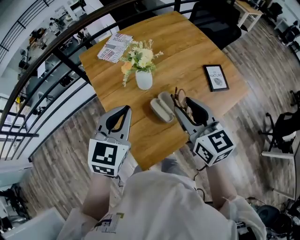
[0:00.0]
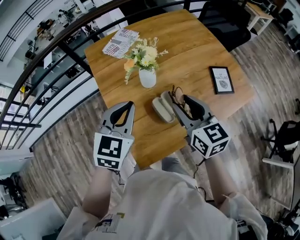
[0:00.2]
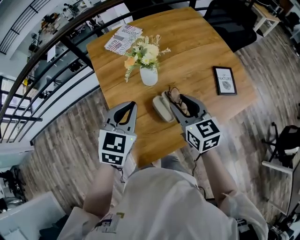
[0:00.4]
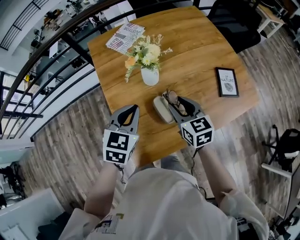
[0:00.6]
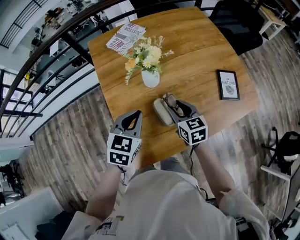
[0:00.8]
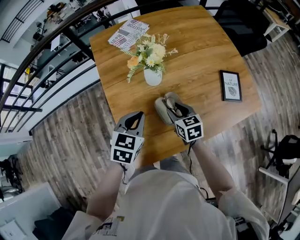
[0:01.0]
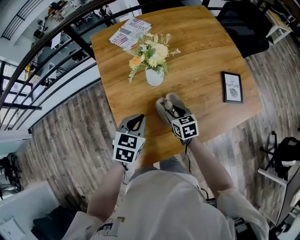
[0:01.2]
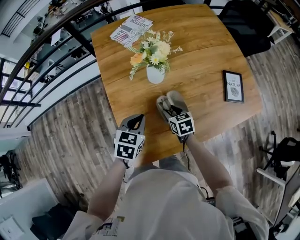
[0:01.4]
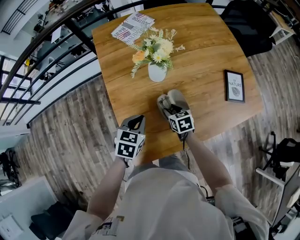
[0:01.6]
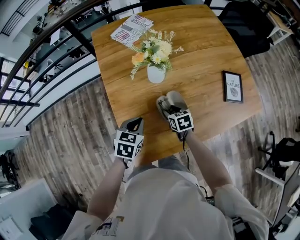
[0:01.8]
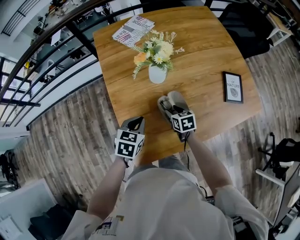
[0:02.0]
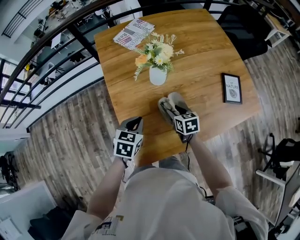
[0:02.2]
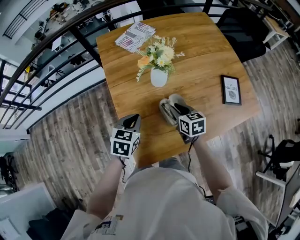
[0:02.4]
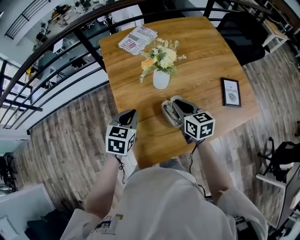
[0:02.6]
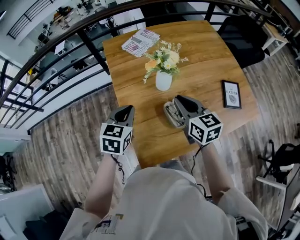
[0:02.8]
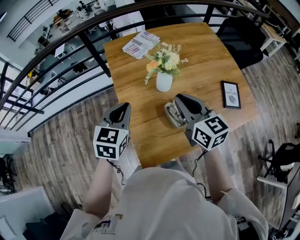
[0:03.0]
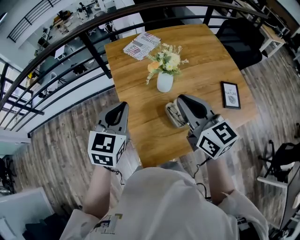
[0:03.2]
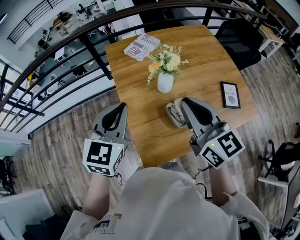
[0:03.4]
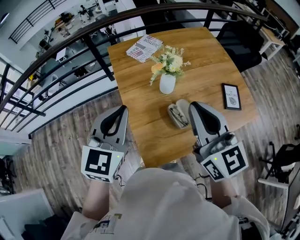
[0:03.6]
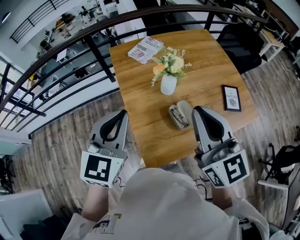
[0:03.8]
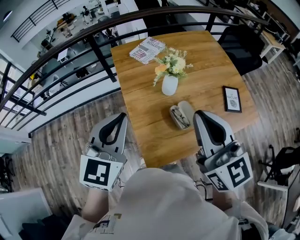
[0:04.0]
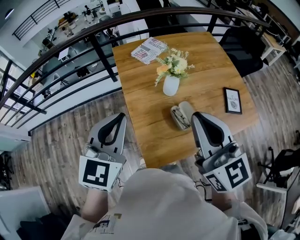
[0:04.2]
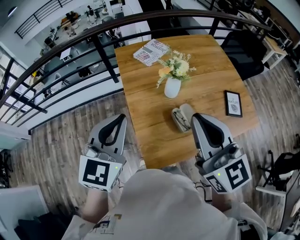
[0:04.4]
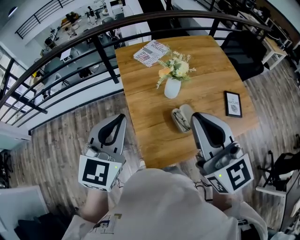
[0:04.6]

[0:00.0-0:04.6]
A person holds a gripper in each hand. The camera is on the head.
0.0 to 1.6 s: Both grippers move downward, roughly 30 cm. The right gripper tips its fingers downward by approximately 40 degrees. Meanwhile the left gripper swivels some 30 degrees.
1.6 to 3.0 s: The left gripper goes roughly 20 cm upward and to the left, and swivels about 20 degrees. Meanwhile the right gripper heads upward, covering roughly 35 cm, angles its fingers upward, by roughly 40 degrees, and closes its fingers.
3.0 to 4.6 s: Both grippers travel together upward and backward, some 20 cm. The right gripper swivels some 20 degrees.

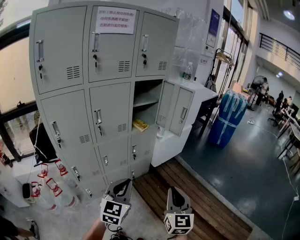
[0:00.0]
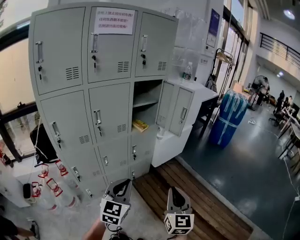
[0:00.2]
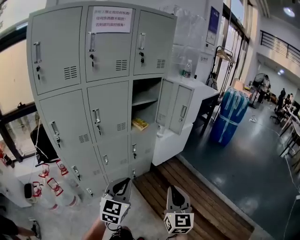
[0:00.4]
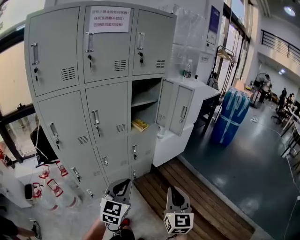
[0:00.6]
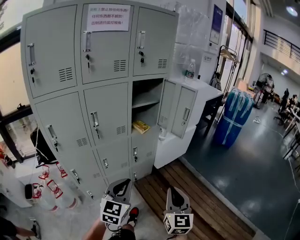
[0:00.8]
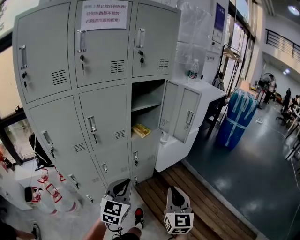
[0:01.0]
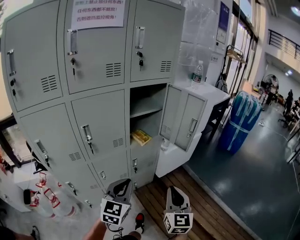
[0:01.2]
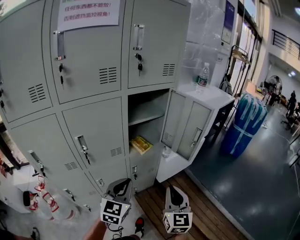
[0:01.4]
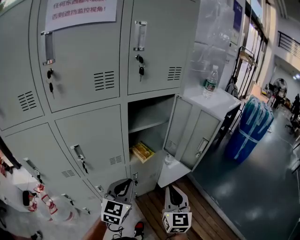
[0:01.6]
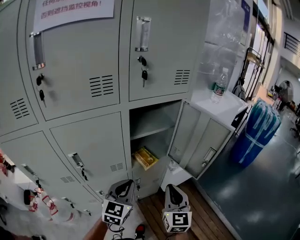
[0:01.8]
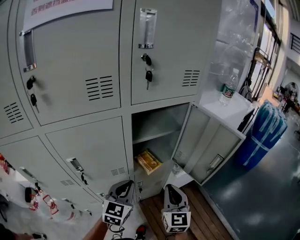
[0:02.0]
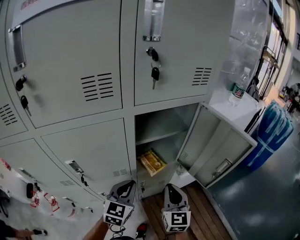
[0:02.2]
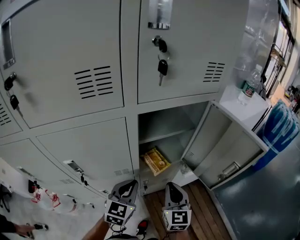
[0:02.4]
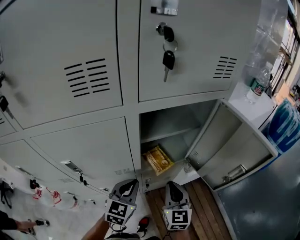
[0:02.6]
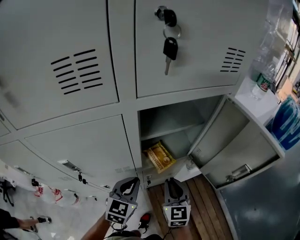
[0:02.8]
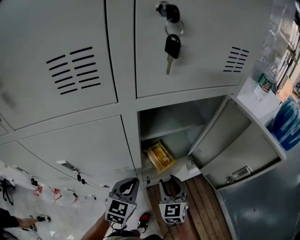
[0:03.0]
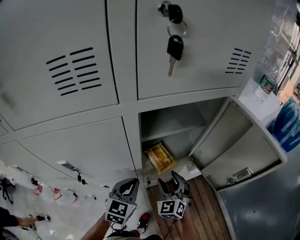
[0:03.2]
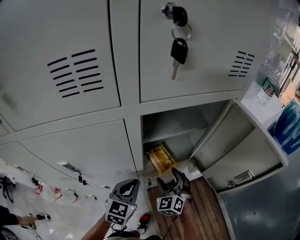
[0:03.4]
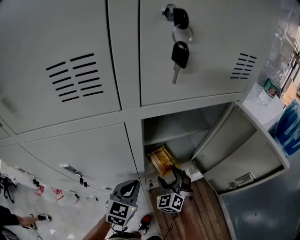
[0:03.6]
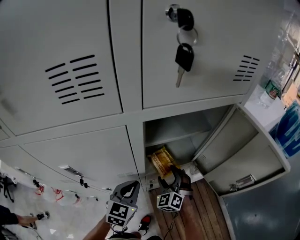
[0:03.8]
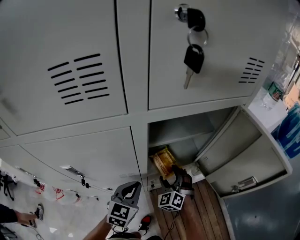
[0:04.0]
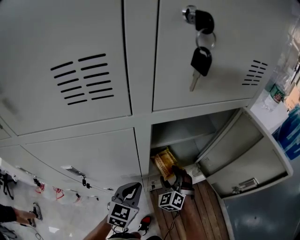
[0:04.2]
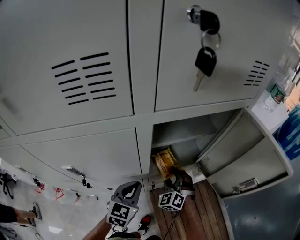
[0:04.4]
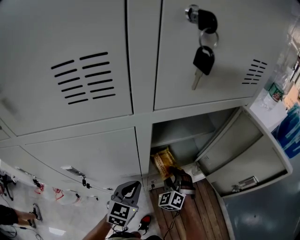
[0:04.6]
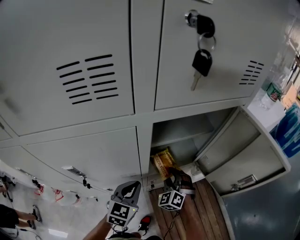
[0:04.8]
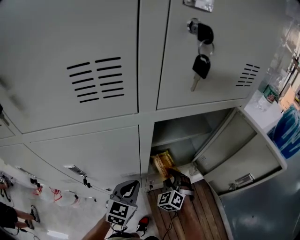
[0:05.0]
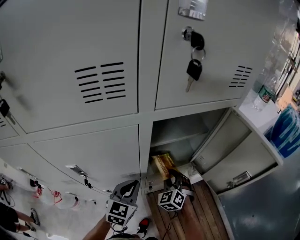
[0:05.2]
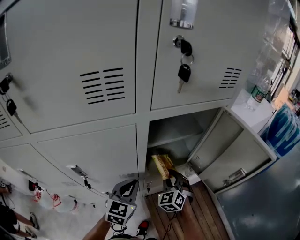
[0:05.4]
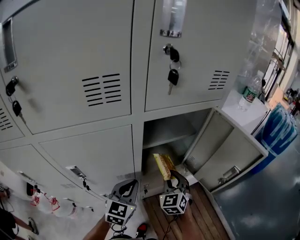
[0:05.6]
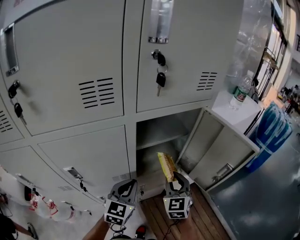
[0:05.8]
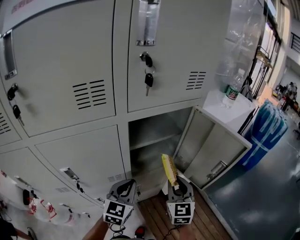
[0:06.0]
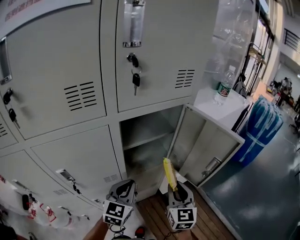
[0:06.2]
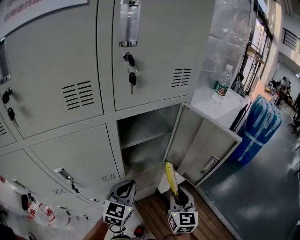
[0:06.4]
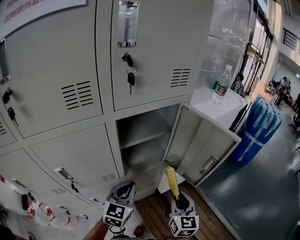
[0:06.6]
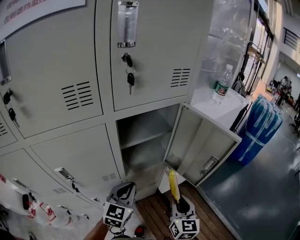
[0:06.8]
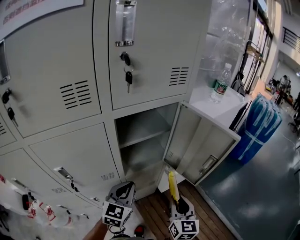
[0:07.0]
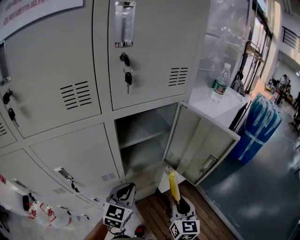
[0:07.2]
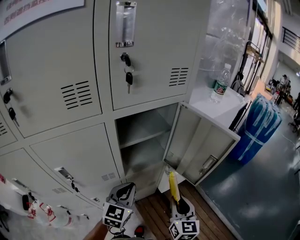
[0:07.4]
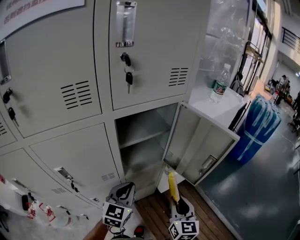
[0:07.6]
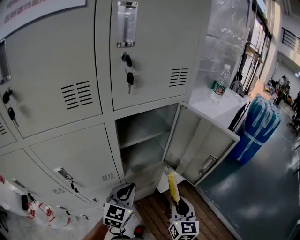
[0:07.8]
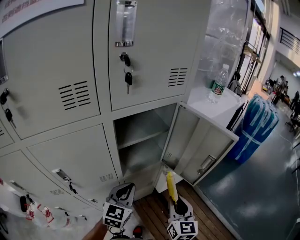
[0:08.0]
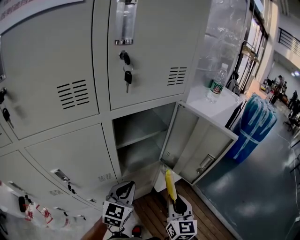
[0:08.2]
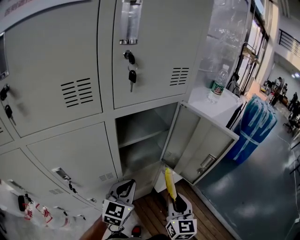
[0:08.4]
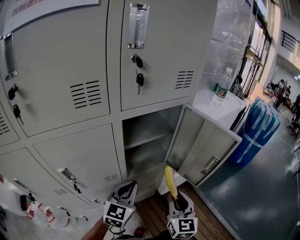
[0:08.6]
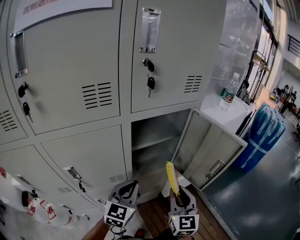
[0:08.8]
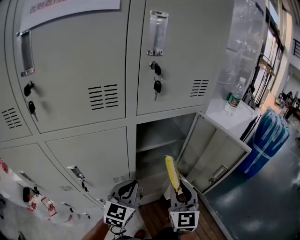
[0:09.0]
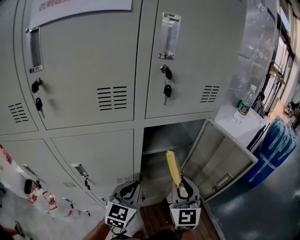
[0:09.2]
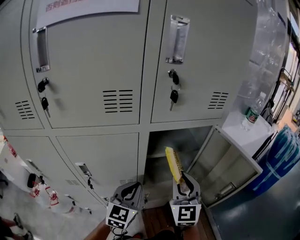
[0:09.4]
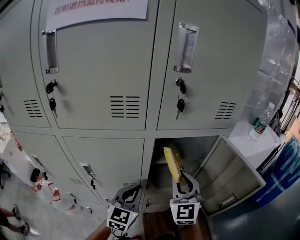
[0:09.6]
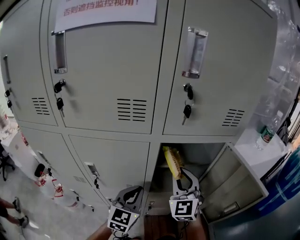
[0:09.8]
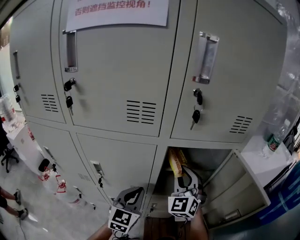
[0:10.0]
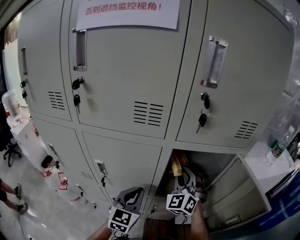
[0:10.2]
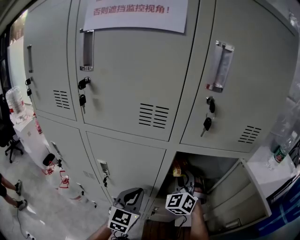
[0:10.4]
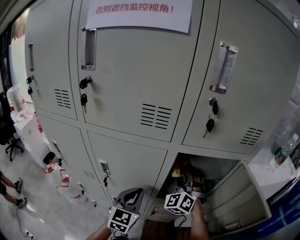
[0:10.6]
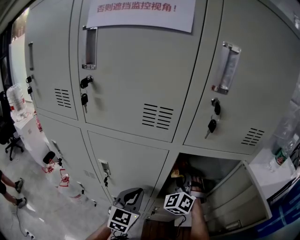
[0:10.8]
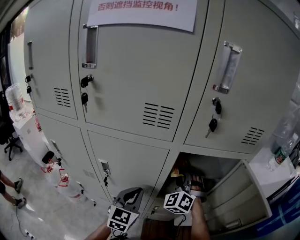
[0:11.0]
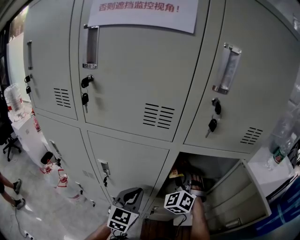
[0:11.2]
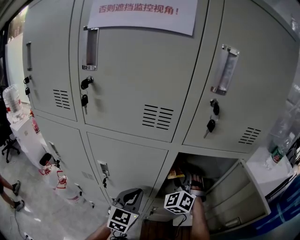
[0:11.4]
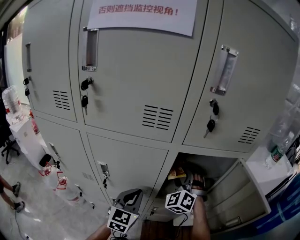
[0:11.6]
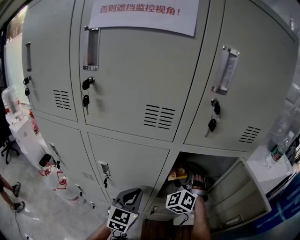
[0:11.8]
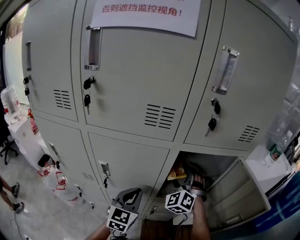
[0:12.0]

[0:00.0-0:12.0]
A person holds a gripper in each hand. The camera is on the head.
0.0 to 1.6 s: The two grippers go about 35 cm forward.
1.6 to 3.0 s: The left gripper moves forward and downward, roughly 15 cm, while the right gripper travels forward, downward and to the left by some 25 cm, changes its angle by roughly 30 degrees, and opens its fingers.
3.0 to 4.4 s: The right gripper shifts about 10 cm forward and downward, and turns by roughly 30 degrees.
4.4 to 6.0 s: The left gripper heads upward, covering roughly 10 cm; the right gripper travels upward, to the right and backward by some 20 cm, twists some 40 degrees clockwise, seen from behind, and closes up.
6.0 to 7.6 s: The right gripper goes roughly 10 cm backward and to the right.
7.6 to 9.0 s: The left gripper changes place by some 5 cm, while the right gripper is displaced upward, to the left and forward by about 15 cm, and swivels roughly 20 degrees.
9.0 to 10.4 s: The right gripper is displaced forward and to the left by approximately 20 cm, and rotates around the line of its fingers by approximately 40 degrees, counterclockwise from behind, while the left gripper moves to the left, approximately 5 cm, and swivels approximately 30 degrees.
10.4 to 12.0 s: The right gripper opens up.

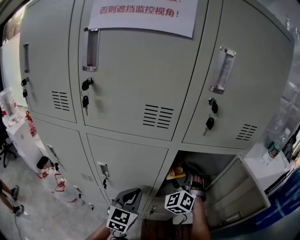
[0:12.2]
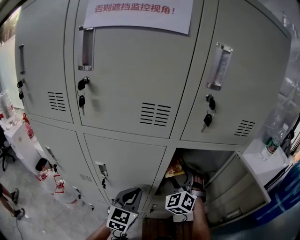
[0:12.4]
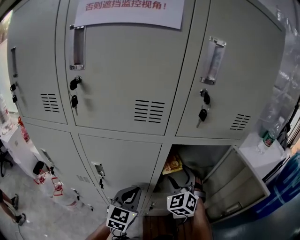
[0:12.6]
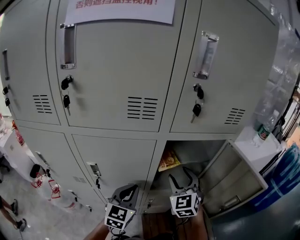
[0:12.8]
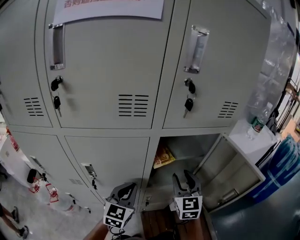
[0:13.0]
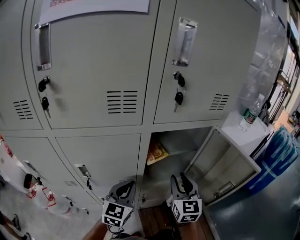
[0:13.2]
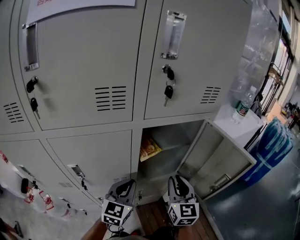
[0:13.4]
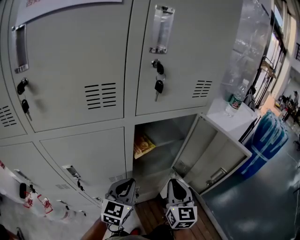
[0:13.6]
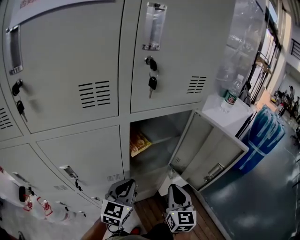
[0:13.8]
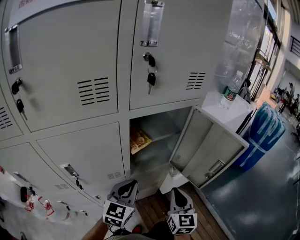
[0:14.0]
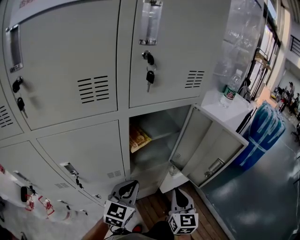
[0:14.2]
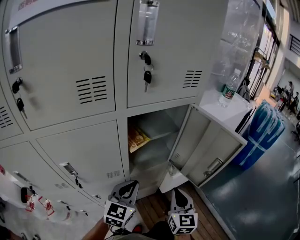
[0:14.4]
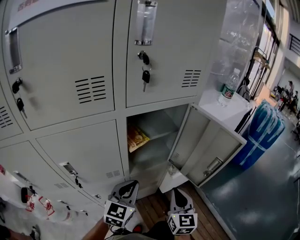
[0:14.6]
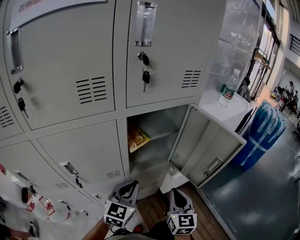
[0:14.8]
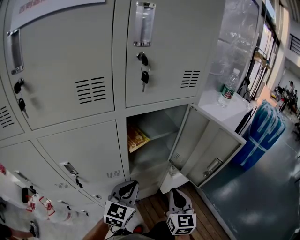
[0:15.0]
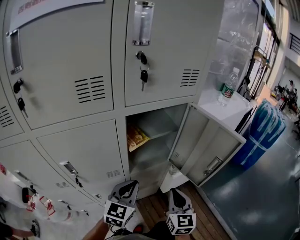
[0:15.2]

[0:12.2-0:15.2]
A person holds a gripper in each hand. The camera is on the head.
12.2 to 13.8 s: The right gripper is displaced backward and to the right by some 20 cm, twists some 70 degrees clockwise, seen from behind, and closes its fingers. Meanwhile the left gripper heads to the right, covering about 10 cm, and changes its angle by roughly 30 degrees.
13.8 to 15.2 s: There are only small adjustments of the grippers.

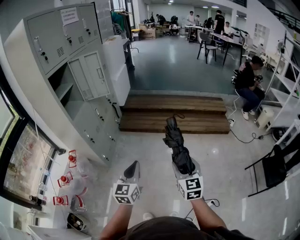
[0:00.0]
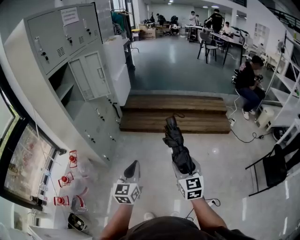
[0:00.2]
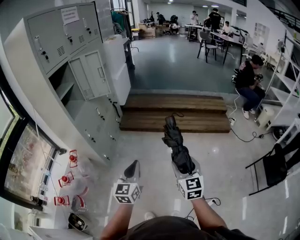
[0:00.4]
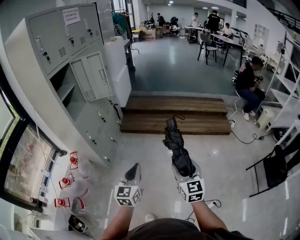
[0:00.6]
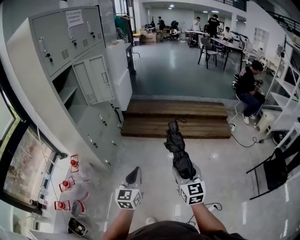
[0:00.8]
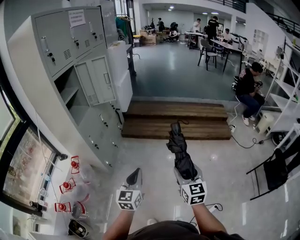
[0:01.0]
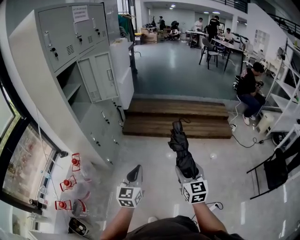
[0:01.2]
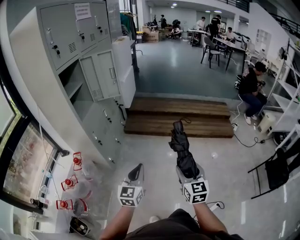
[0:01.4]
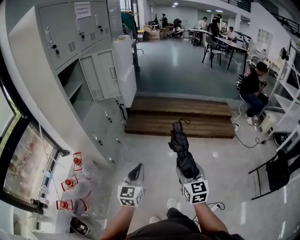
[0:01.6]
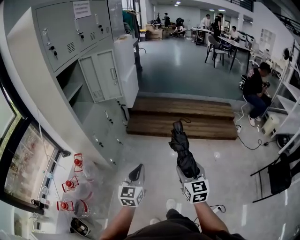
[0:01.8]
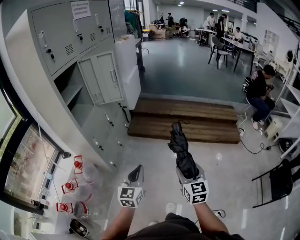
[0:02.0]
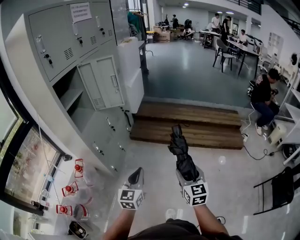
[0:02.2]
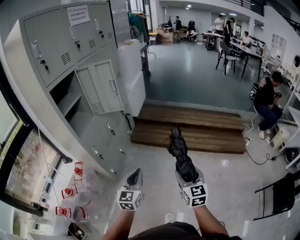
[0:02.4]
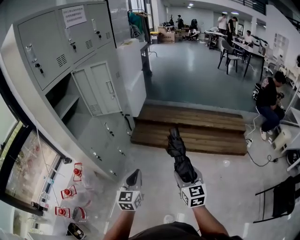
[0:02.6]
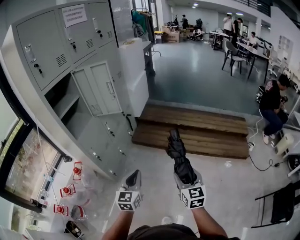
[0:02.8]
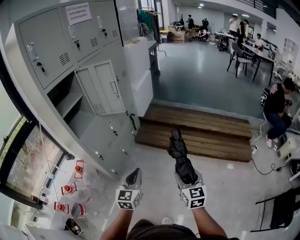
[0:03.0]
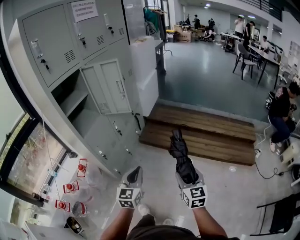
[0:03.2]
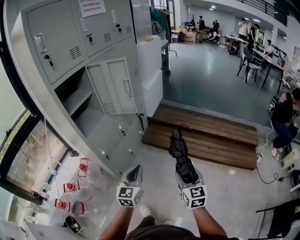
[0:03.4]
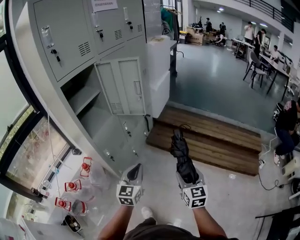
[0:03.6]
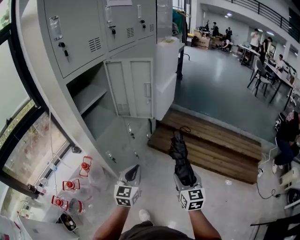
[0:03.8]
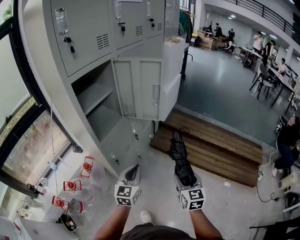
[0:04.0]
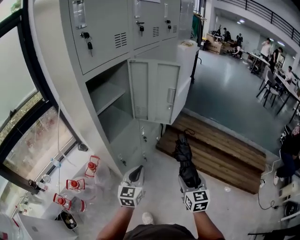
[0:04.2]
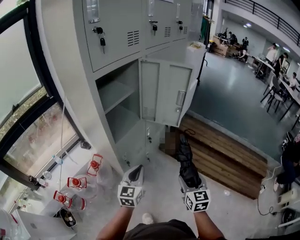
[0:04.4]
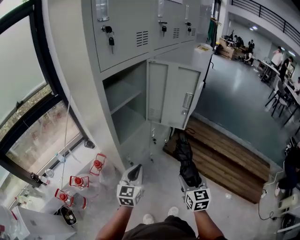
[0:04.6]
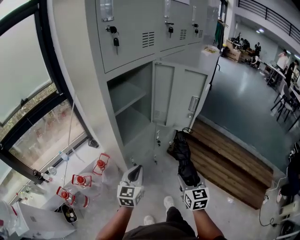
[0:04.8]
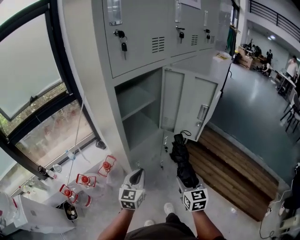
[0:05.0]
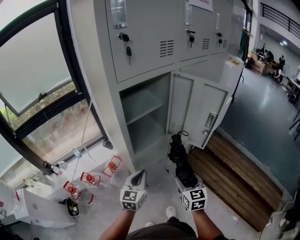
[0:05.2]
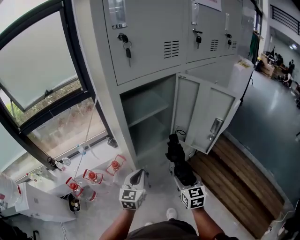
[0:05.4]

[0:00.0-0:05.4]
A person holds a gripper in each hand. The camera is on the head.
0.0 to 1.4 s: Both grippers travel together to the left, roughly 10 cm.
1.4 to 2.8 s: Both grippers move forward, approximately 20 cm.
2.8 to 4.0 s: Both grippers travel together to the left and forward, roughly 25 cm.
4.0 to 5.4 s: The right gripper changes place by roughly 25 cm, and changes its angle by approximately 30 degrees, while the left gripper changes place by some 20 cm, and changes its angle by approximately 30 degrees.
